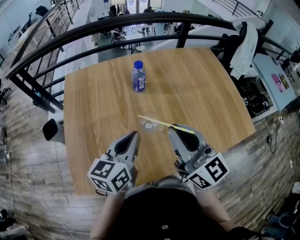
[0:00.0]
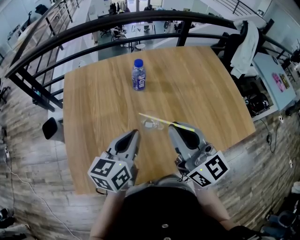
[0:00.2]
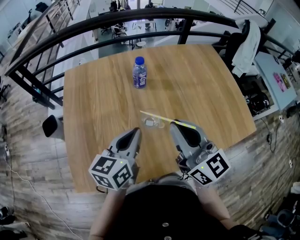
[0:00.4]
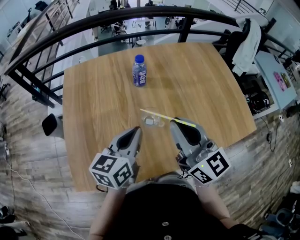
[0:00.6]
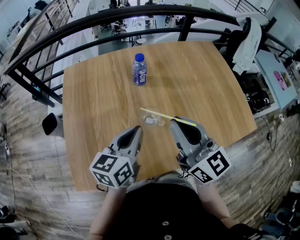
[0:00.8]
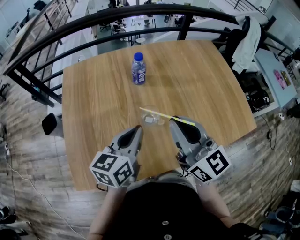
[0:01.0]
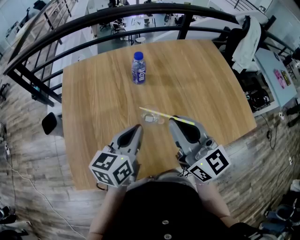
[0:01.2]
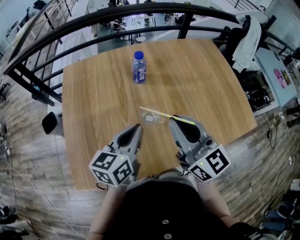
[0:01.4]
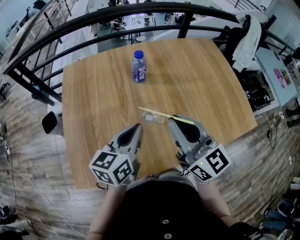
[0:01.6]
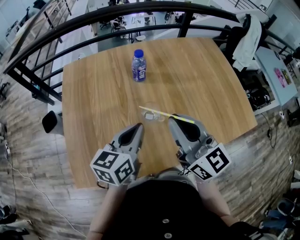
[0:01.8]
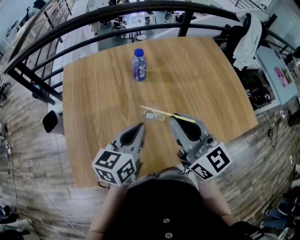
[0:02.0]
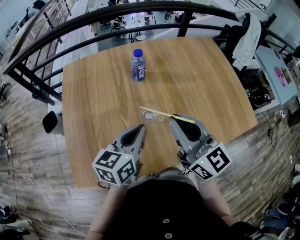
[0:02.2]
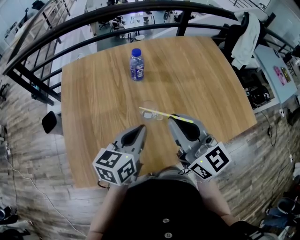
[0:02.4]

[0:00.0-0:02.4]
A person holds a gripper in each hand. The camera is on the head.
0:00.0 to 0:02.4: The grippers move only a little.

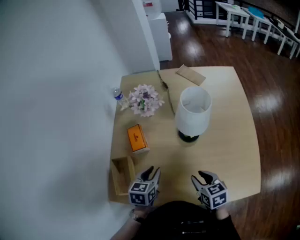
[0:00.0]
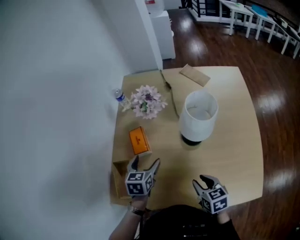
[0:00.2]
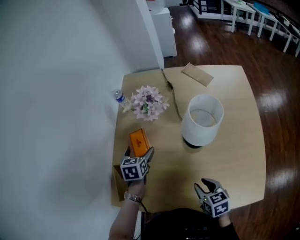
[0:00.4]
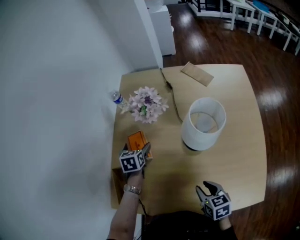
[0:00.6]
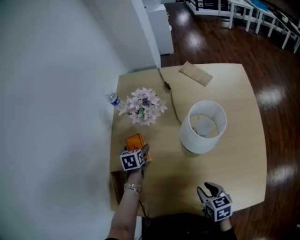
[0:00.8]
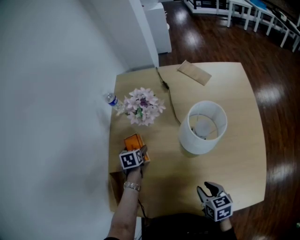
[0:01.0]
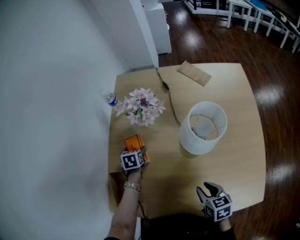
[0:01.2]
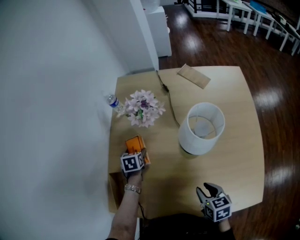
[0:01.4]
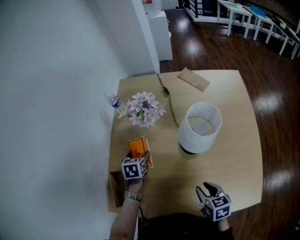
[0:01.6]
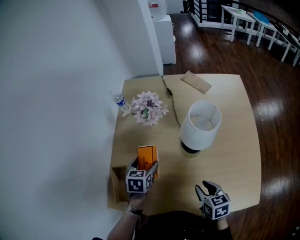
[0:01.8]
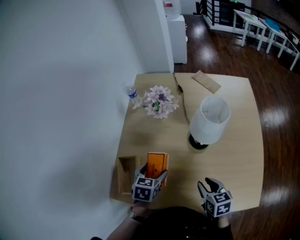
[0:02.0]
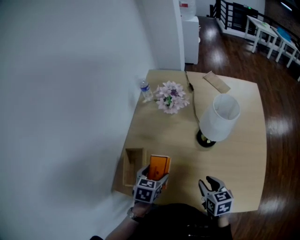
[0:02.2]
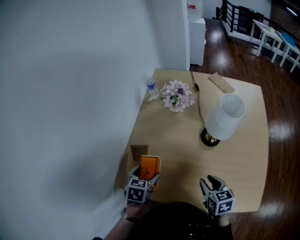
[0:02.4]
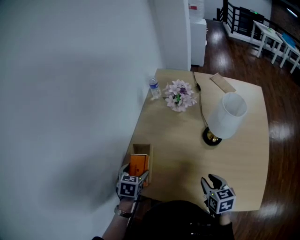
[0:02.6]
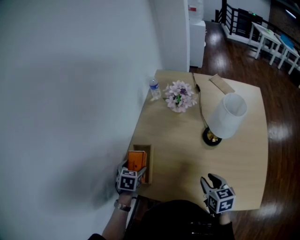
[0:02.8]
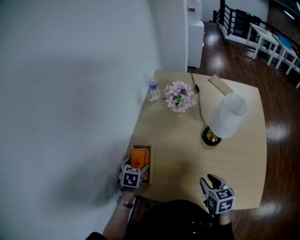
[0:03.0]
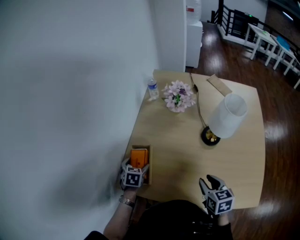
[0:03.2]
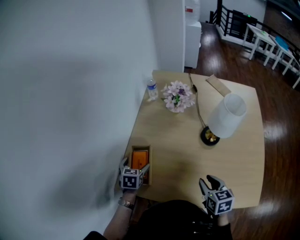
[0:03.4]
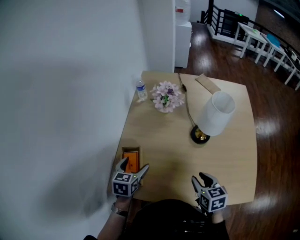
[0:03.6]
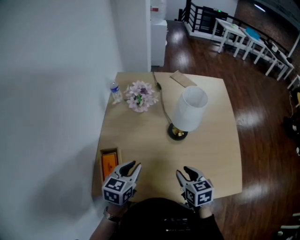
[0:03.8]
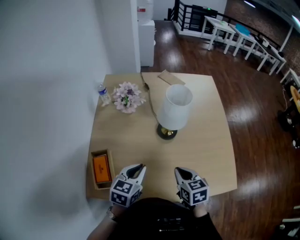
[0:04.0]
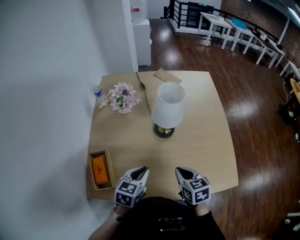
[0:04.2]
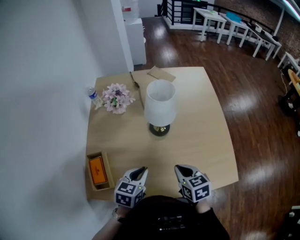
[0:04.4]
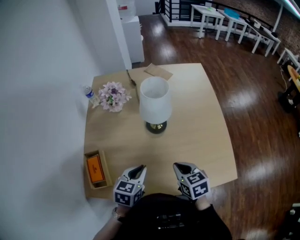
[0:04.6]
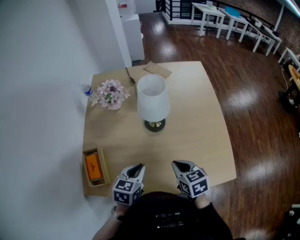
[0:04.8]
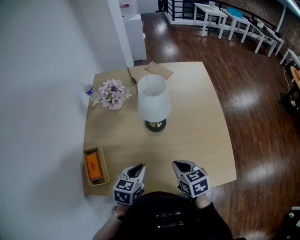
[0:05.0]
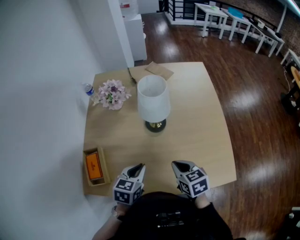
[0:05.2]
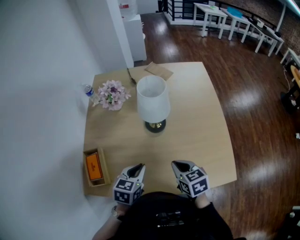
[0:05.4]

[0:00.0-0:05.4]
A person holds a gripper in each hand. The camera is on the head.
0:00.0 to 0:01.4: The left gripper moves forward and downward, some 25 cm, swivels roughly 20 degrees, and opens up.
0:01.4 to 0:02.8: The left gripper heads backward and to the left, covering about 25 cm. The right gripper goes roughly 5 cm to the left.
0:02.8 to 0:04.0: The left gripper moves approximately 25 cm, changes its angle by about 40 degrees, and closes. The right gripper closes its fingers.
0:04.0 to 0:05.4: The two grippers go roughly 5 cm to the right.

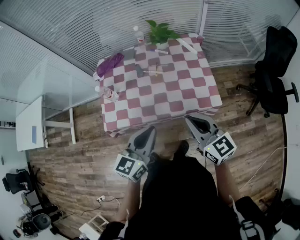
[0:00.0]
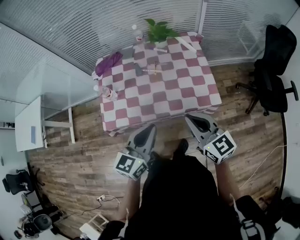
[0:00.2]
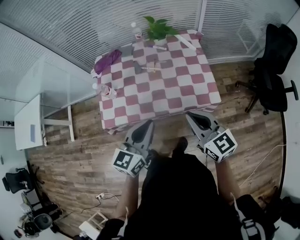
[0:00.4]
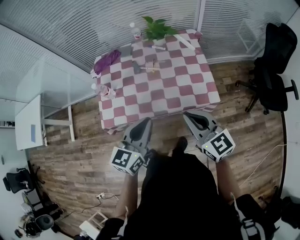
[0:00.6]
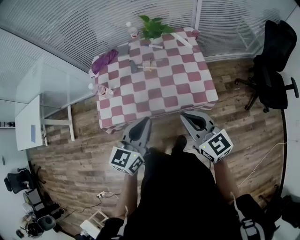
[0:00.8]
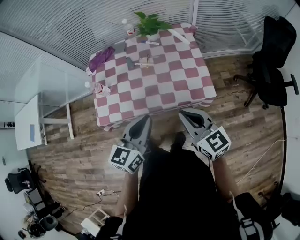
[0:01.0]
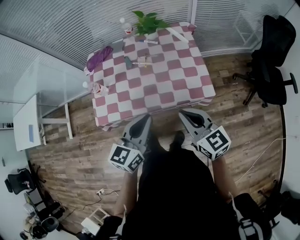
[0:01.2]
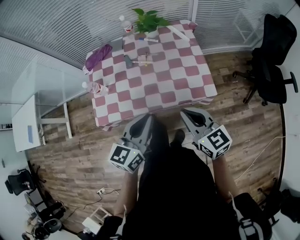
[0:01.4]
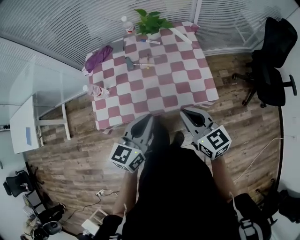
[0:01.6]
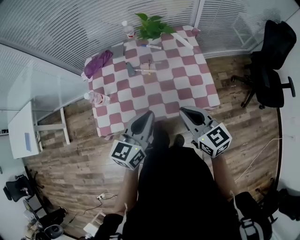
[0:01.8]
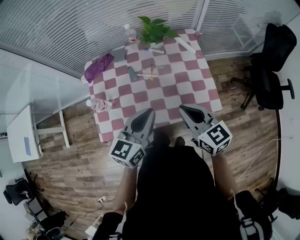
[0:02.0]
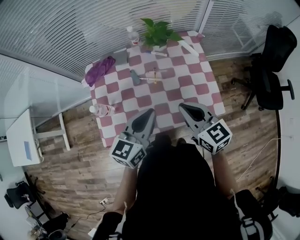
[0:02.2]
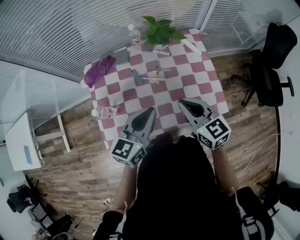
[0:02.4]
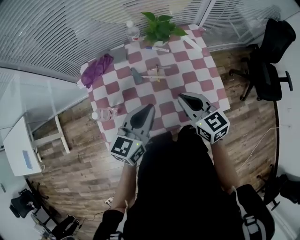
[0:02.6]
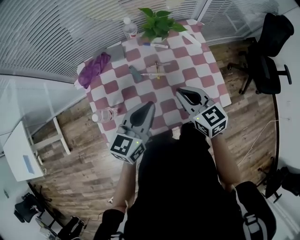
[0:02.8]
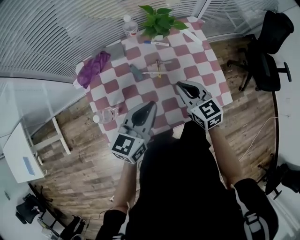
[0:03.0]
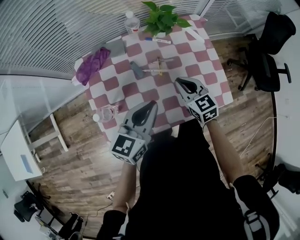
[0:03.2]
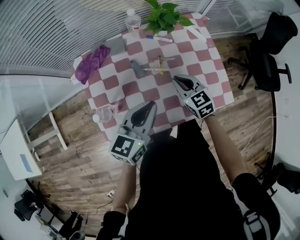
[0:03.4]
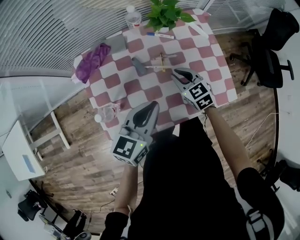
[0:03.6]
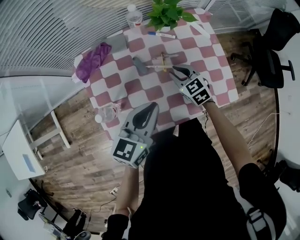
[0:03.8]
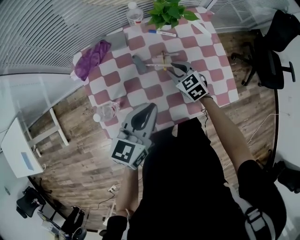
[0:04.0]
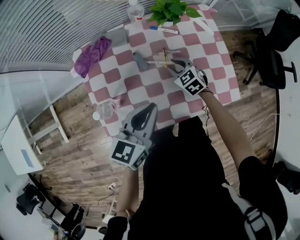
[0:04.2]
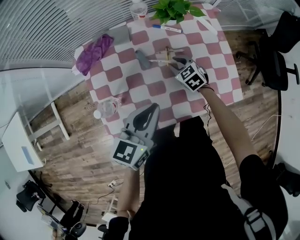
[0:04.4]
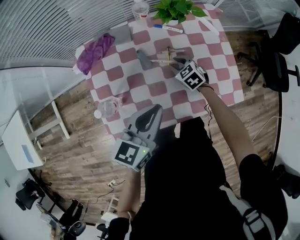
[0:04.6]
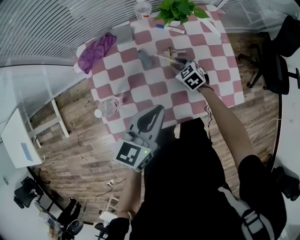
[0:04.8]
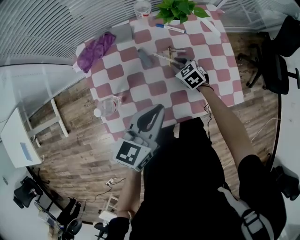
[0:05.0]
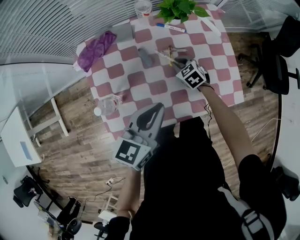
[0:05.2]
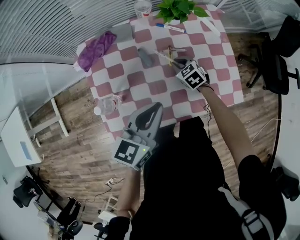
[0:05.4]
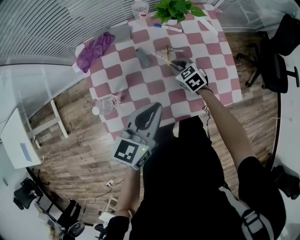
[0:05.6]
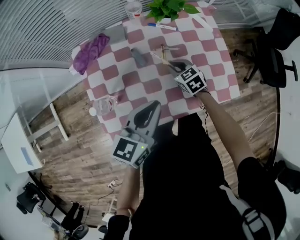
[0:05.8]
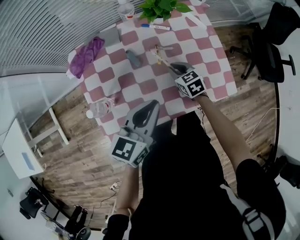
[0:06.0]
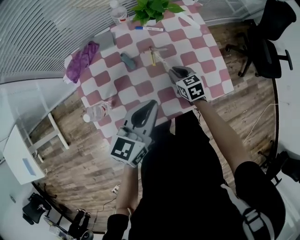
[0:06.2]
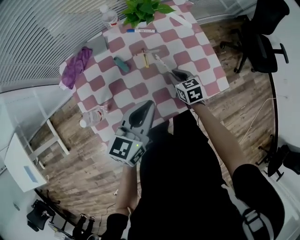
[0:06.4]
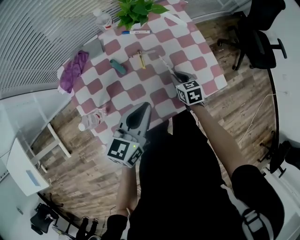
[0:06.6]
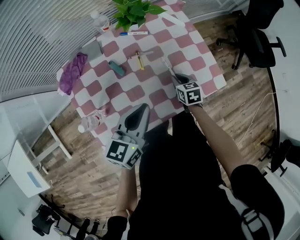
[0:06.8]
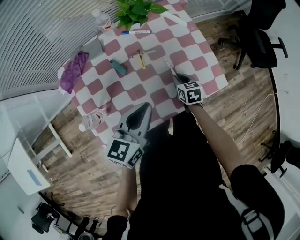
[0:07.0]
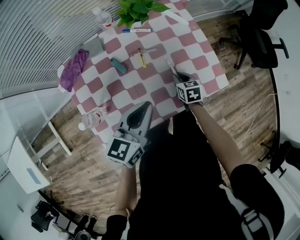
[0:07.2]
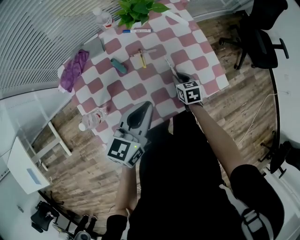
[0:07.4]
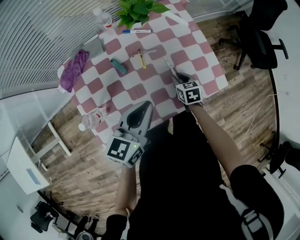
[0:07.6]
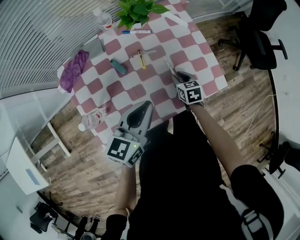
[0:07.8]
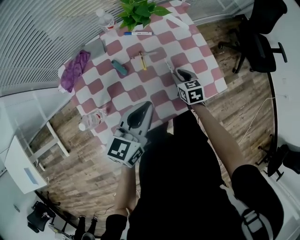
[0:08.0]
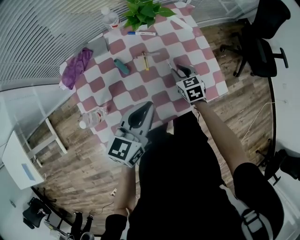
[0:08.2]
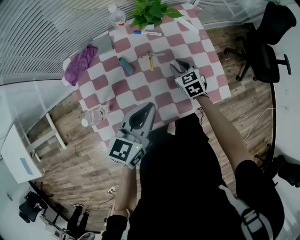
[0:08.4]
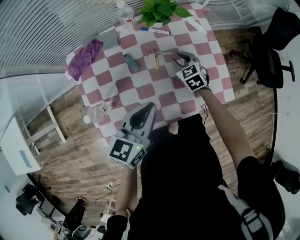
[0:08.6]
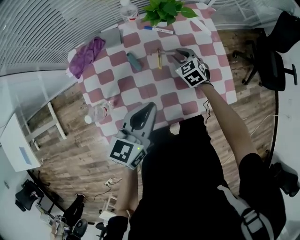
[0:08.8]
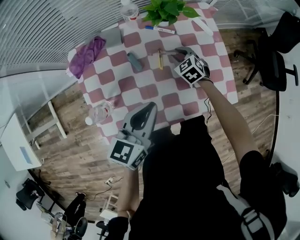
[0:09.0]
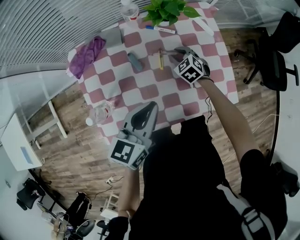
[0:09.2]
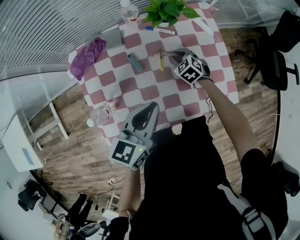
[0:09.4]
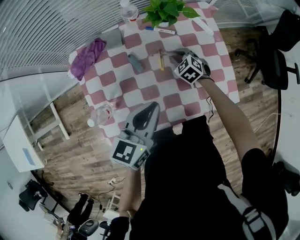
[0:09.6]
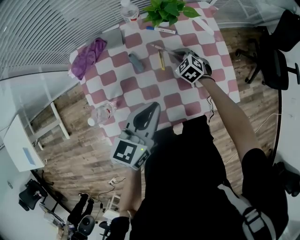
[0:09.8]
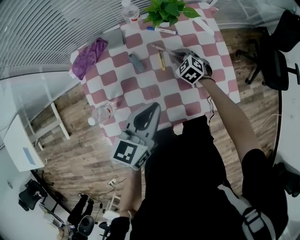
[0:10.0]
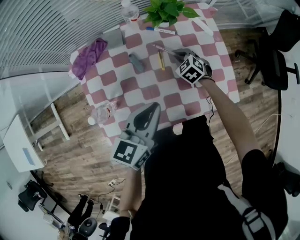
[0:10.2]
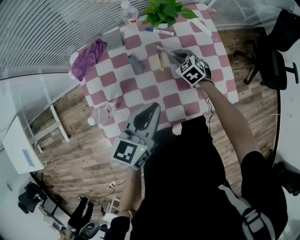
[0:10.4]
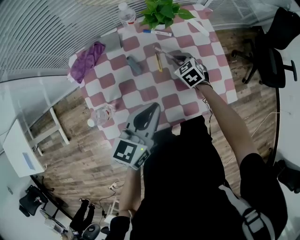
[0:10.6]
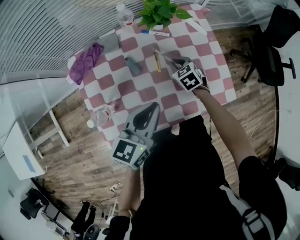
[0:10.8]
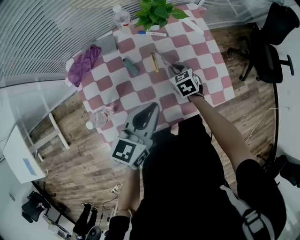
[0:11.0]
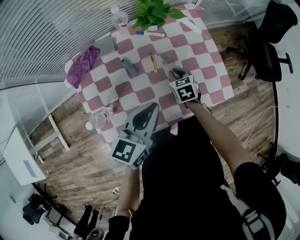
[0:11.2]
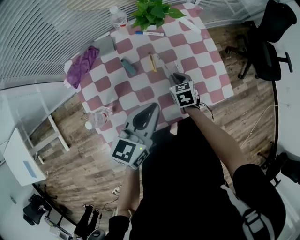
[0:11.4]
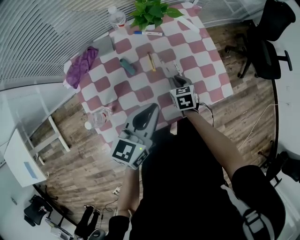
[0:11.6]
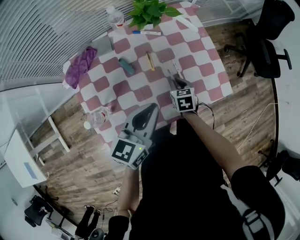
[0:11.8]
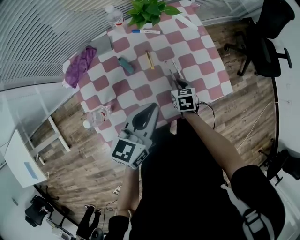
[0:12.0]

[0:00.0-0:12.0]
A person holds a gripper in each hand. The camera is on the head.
0:00.0 to 0:01.6: The left gripper goes about 5 cm forward, while the right gripper moves some 5 cm.
0:01.6 to 0:03.0: Both grippers travel together forward and to the left, roughly 25 cm.
0:03.0 to 0:04.4: The right gripper shifts approximately 20 cm downward and forward, turns by about 30 degrees, and opens its fingers.
0:04.4 to 0:06.0: The right gripper changes place by about 5 cm.
0:06.0 to 0:07.6: The right gripper travels to the right by about 10 cm, and turns by roughly 20 degrees.
0:07.6 to 0:09.0: The right gripper heads forward and to the left, covering roughly 15 cm, and twists about 40 degrees counterclockwise, seen from behind.
0:09.0 to 0:10.4: The grippers make only small movements.
0:10.4 to 0:12.0: The right gripper goes roughly 15 cm backward and to the right, and changes its angle by about 40 degrees.

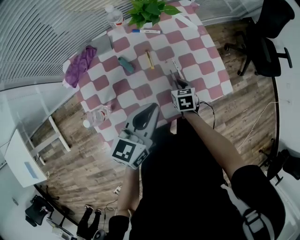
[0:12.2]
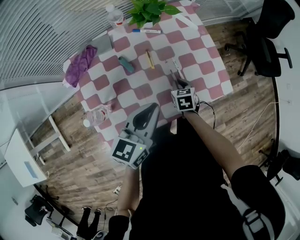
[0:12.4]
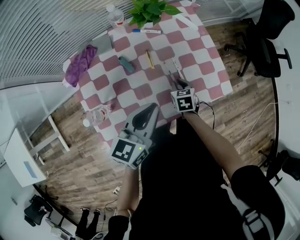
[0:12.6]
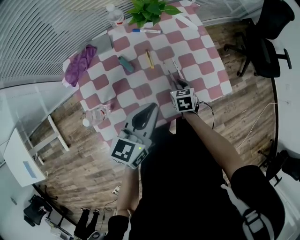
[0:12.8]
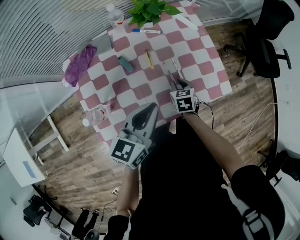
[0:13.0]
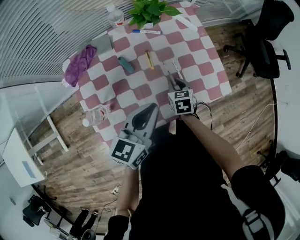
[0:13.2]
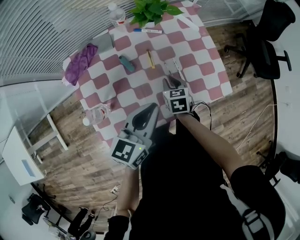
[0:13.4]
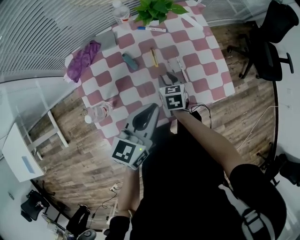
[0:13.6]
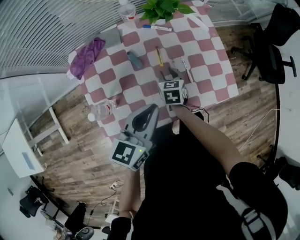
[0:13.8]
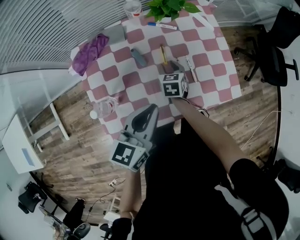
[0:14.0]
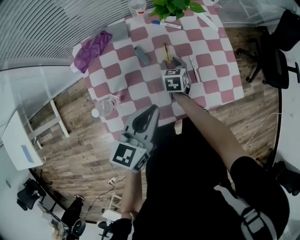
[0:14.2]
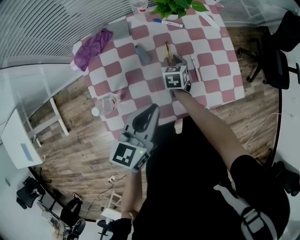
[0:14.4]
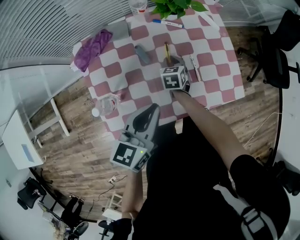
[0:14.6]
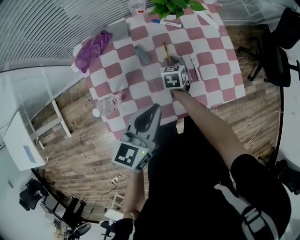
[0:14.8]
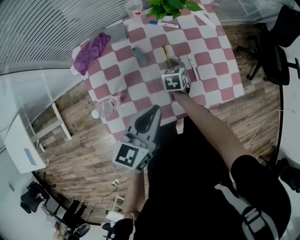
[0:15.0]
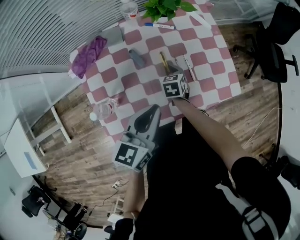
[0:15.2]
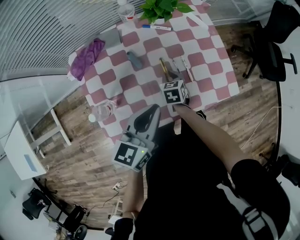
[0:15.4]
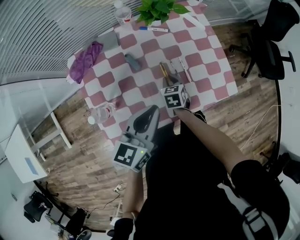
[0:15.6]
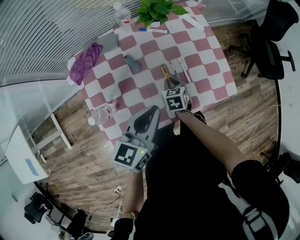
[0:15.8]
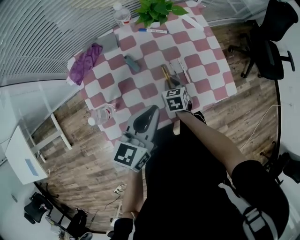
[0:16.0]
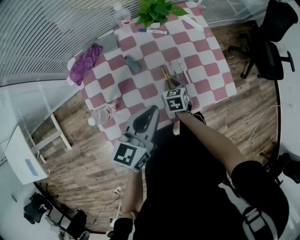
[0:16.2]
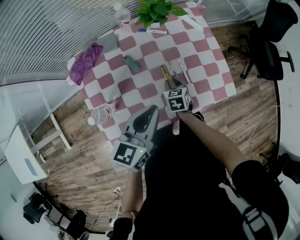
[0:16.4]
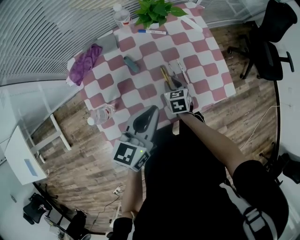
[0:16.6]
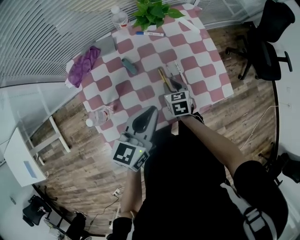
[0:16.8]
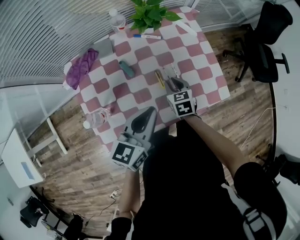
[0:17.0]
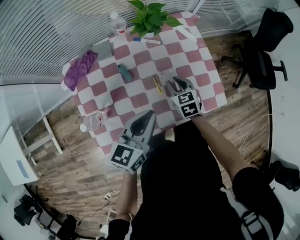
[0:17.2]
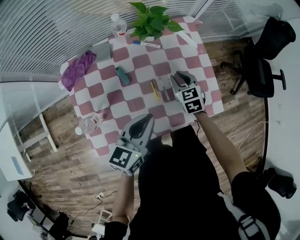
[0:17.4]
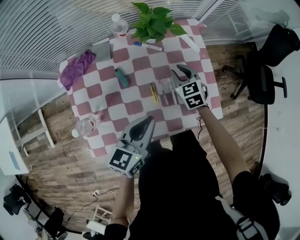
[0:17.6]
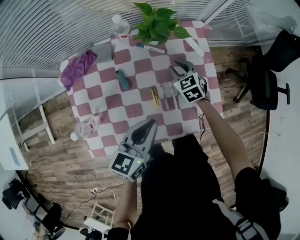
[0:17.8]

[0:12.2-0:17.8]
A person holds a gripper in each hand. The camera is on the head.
0:12.2 to 0:13.6: The right gripper moves to the left, about 10 cm.
0:13.6 to 0:15.0: The right gripper changes place by about 5 cm.
0:15.0 to 0:16.4: The right gripper travels backward and to the right by roughly 10 cm.
0:16.4 to 0:17.8: The right gripper is displaced forward by about 20 cm, and changes its angle by approximately 30 degrees. Meanwhile the left gripper heads forward and to the right, covering approximately 10 cm.
